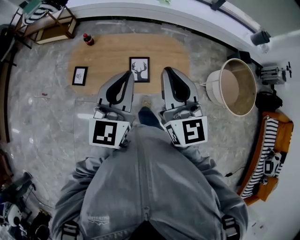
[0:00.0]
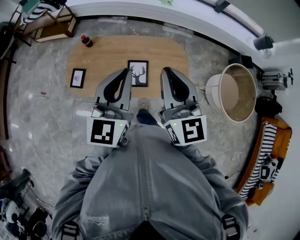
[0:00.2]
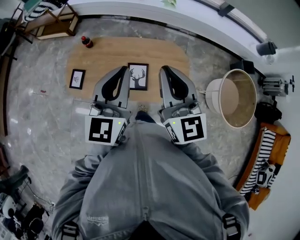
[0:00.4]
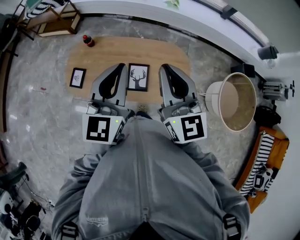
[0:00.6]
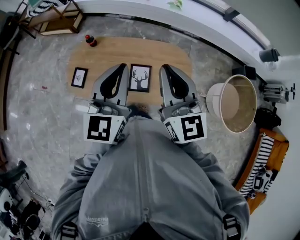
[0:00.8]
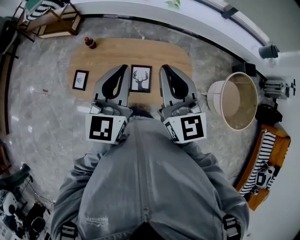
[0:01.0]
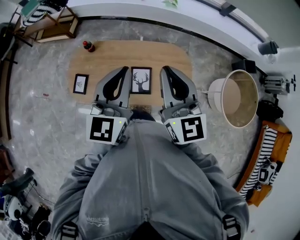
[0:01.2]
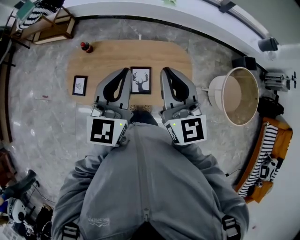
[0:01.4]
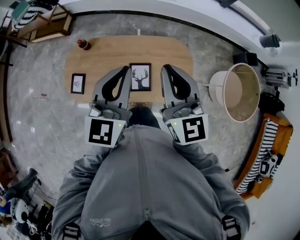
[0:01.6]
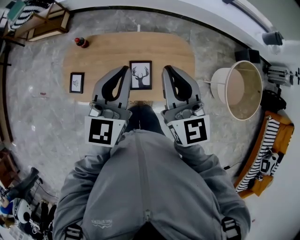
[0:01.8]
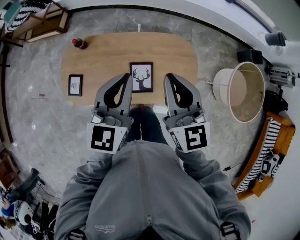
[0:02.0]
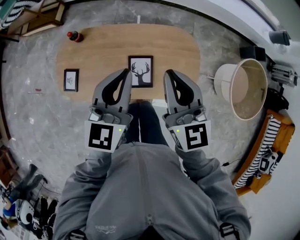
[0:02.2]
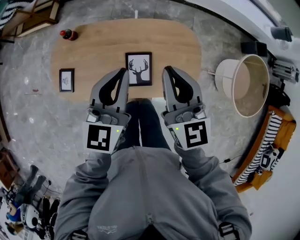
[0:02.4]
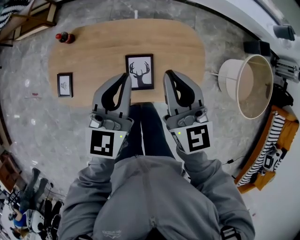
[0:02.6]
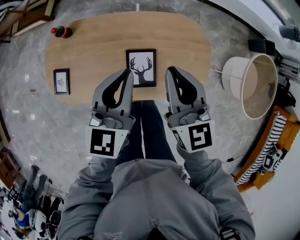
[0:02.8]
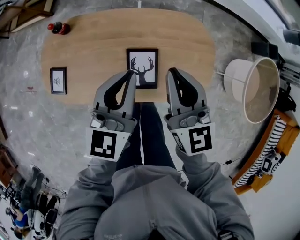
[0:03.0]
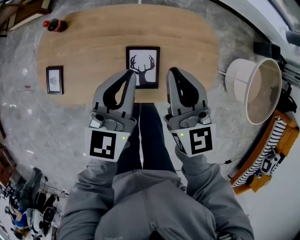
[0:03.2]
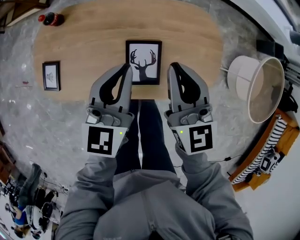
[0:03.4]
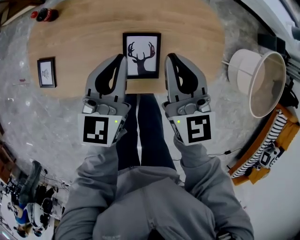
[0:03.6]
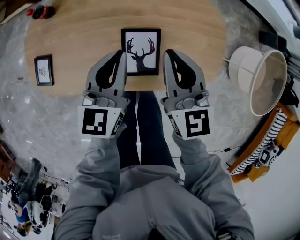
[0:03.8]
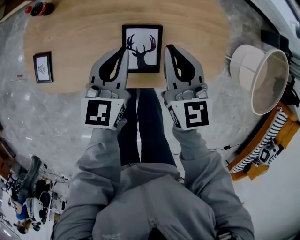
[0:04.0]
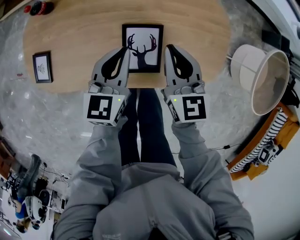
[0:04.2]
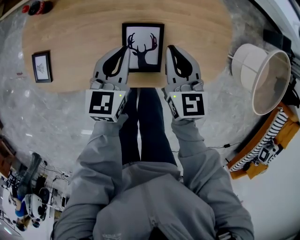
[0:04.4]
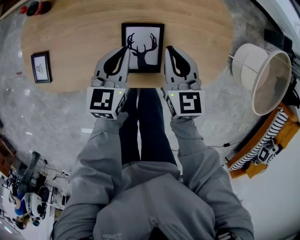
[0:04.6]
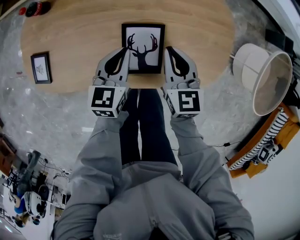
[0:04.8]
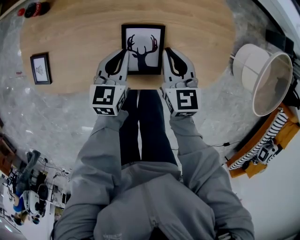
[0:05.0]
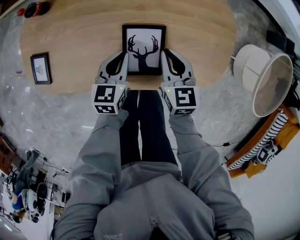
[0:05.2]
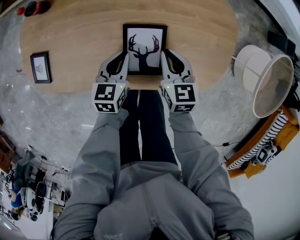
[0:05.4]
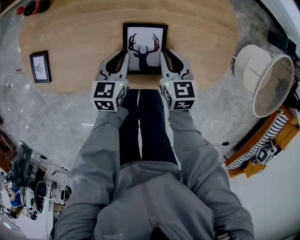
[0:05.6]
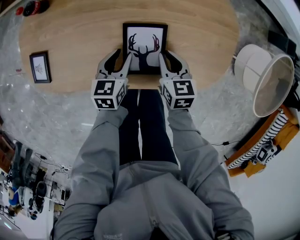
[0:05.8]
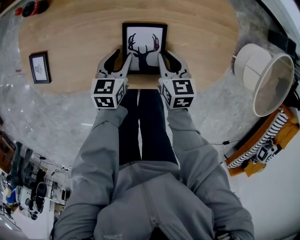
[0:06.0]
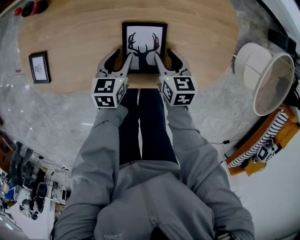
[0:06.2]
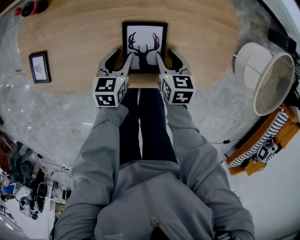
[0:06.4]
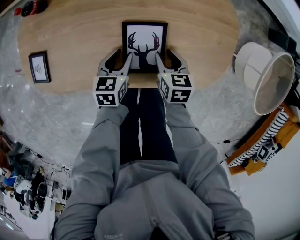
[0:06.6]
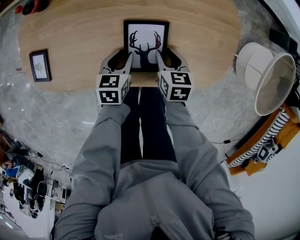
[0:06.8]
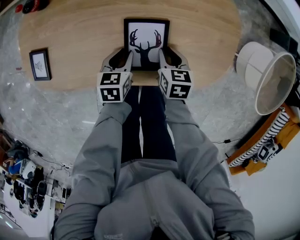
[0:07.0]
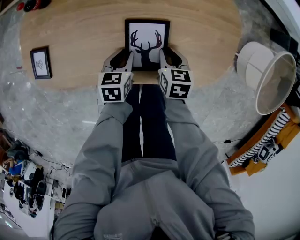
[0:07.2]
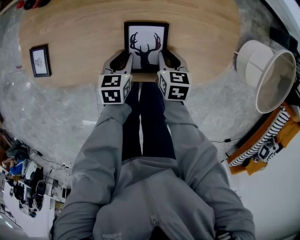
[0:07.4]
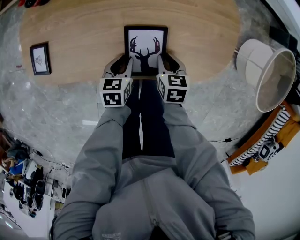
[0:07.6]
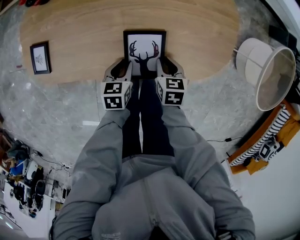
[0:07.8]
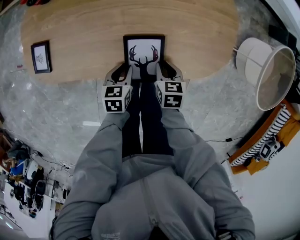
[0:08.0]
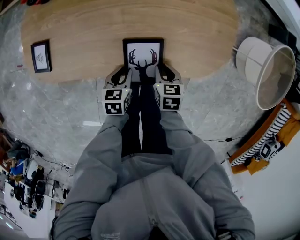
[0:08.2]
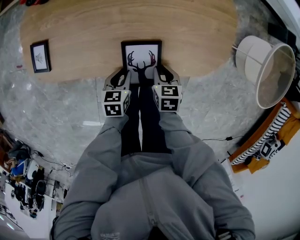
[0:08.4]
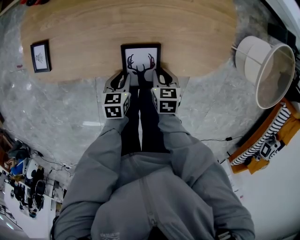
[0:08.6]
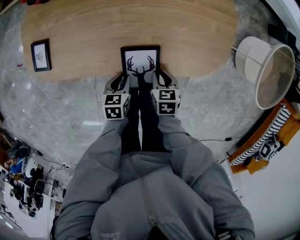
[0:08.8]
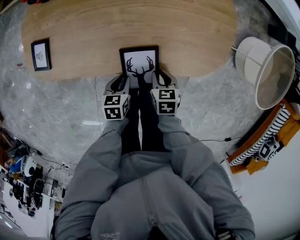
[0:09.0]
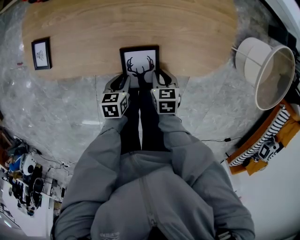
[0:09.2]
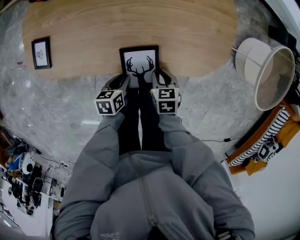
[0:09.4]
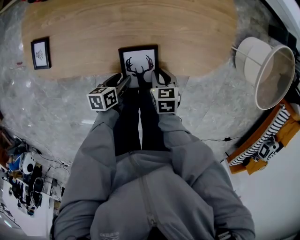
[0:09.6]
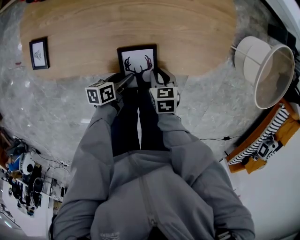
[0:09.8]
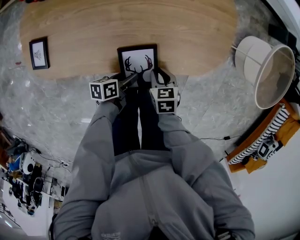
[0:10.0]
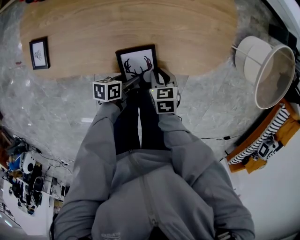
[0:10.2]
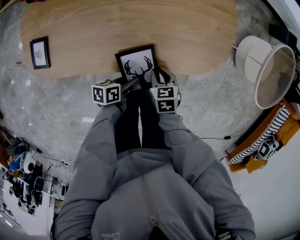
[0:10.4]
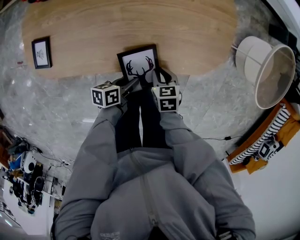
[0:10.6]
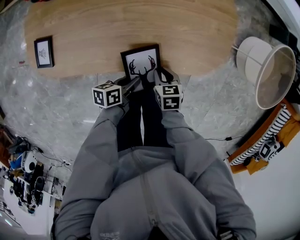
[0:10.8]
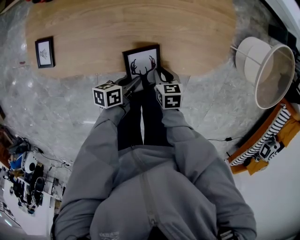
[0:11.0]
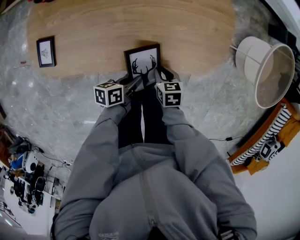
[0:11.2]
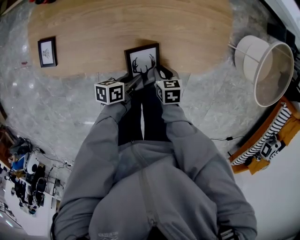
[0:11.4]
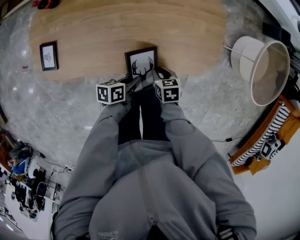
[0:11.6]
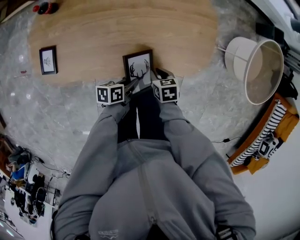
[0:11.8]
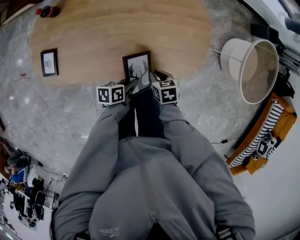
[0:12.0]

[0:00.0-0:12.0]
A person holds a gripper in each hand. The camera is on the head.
0:00.0 to 0:01.6: The two grippers go about 20 cm forward.
0:01.6 to 0:03.0: The grippers both shift downward by roughly 30 cm.
0:03.0 to 0:04.4: Both grippers travel together downward, about 20 cm.
0:04.4 to 0:06.0: Both grippers move downward, approximately 15 cm. The left gripper opens its fingers. The right gripper swivels about 20 degrees.
0:06.0 to 0:07.6: Both grippers move backward, about 5 cm.
0:07.6 to 0:09.0: The grippers both shift backward by roughly 10 cm.
0:09.0 to 0:10.4: The left gripper moves approximately 5 cm, and changes its angle by roughly 40 degrees.
0:10.4 to 0:12.0: The two grippers go roughly 10 cm upward. The left gripper closes its fingers.

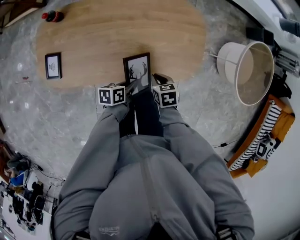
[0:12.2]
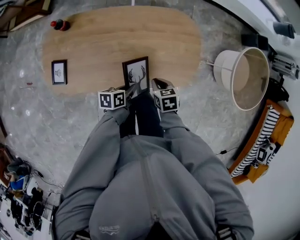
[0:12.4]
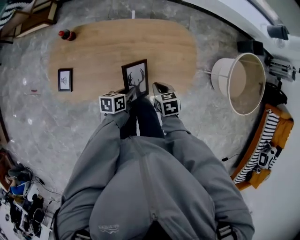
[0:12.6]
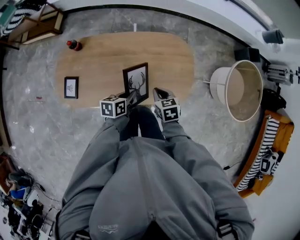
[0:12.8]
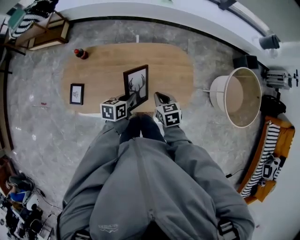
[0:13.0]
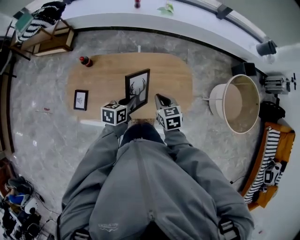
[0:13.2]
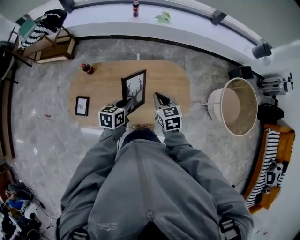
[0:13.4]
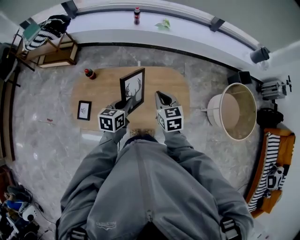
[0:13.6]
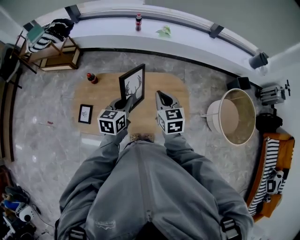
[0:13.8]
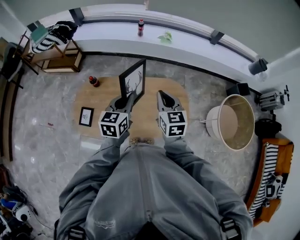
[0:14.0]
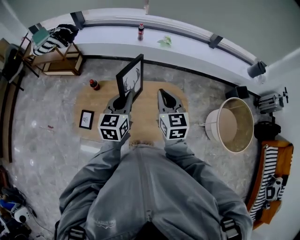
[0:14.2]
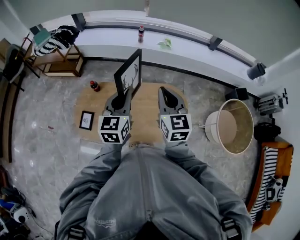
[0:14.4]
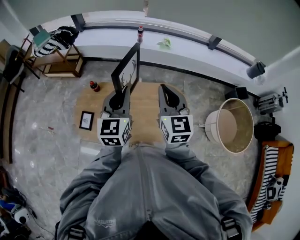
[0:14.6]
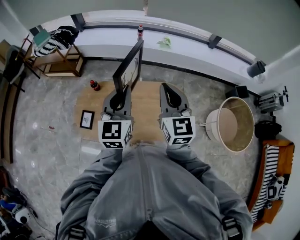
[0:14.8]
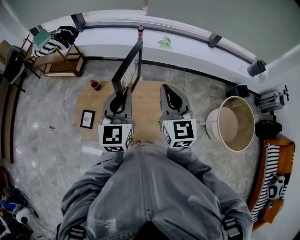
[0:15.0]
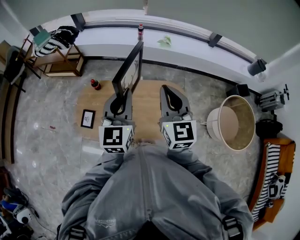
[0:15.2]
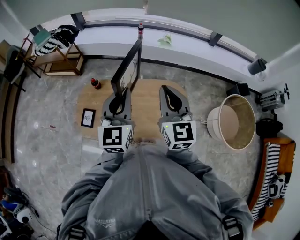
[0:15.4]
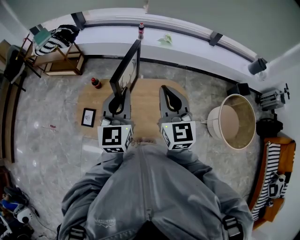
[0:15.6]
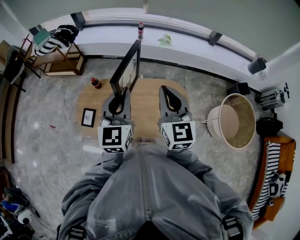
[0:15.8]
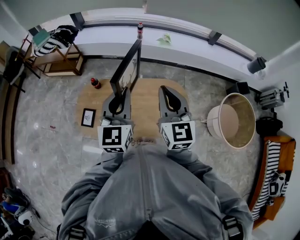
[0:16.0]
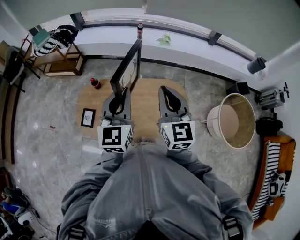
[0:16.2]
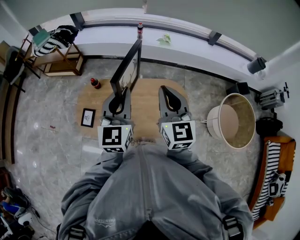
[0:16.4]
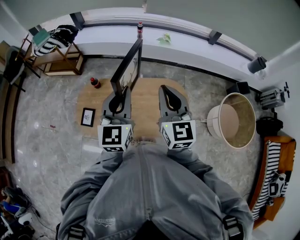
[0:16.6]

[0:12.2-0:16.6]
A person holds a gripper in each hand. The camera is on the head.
0:12.2 to 0:13.6: The grippers both shift upward by about 40 cm. The left gripper swivels approximately 40 degrees, while the right gripper tips its fingers upward by some 30 degrees.
0:13.6 to 0:15.2: Both grippers move upward, approximately 25 cm. The right gripper rotates some 30 degrees. The left gripper points its fingers about 30 degrees further upward.
0:15.2 to 0:16.6: The grippers make only small movements.

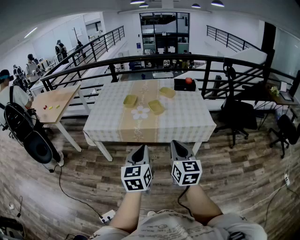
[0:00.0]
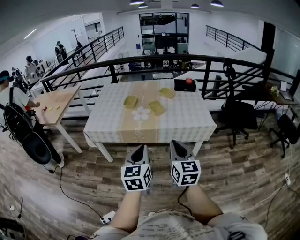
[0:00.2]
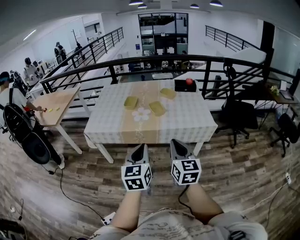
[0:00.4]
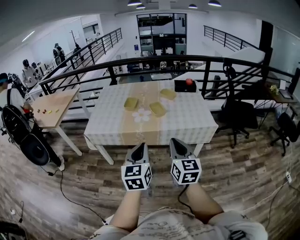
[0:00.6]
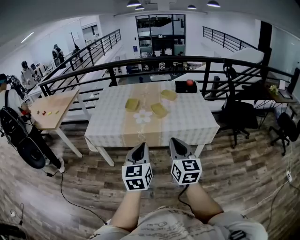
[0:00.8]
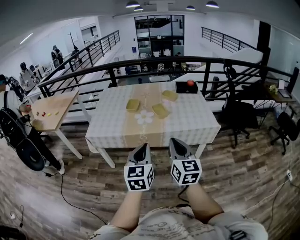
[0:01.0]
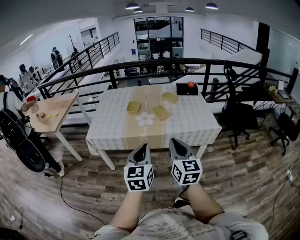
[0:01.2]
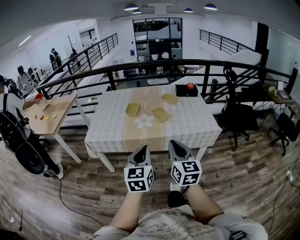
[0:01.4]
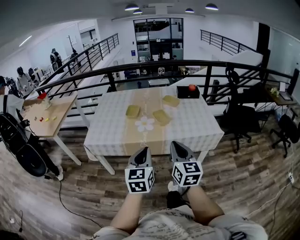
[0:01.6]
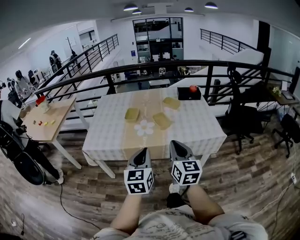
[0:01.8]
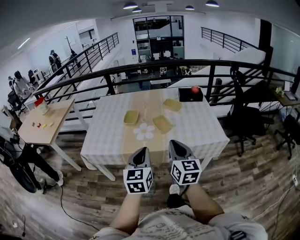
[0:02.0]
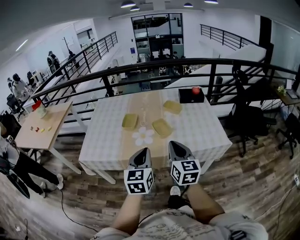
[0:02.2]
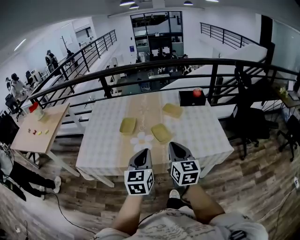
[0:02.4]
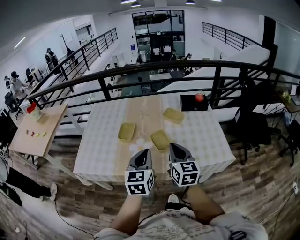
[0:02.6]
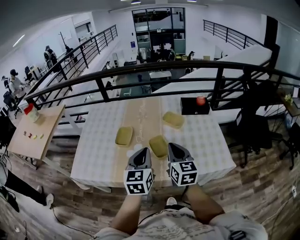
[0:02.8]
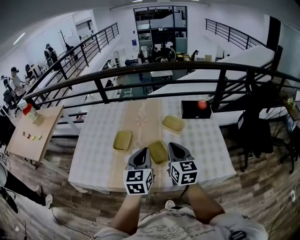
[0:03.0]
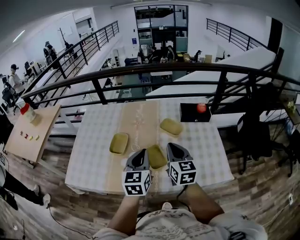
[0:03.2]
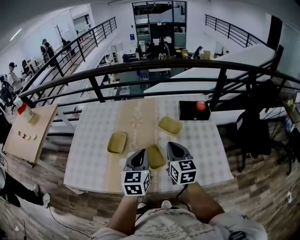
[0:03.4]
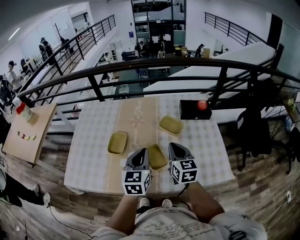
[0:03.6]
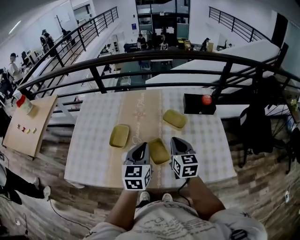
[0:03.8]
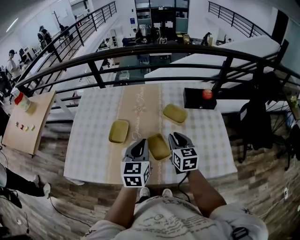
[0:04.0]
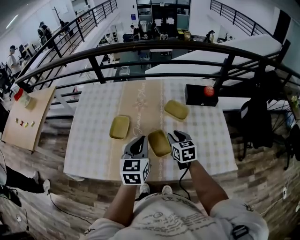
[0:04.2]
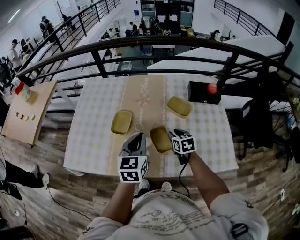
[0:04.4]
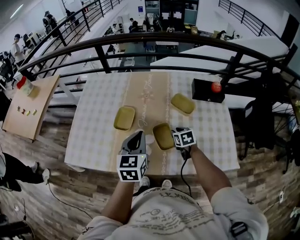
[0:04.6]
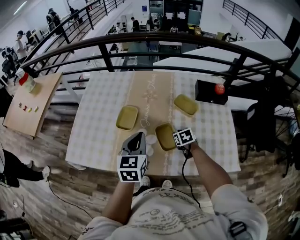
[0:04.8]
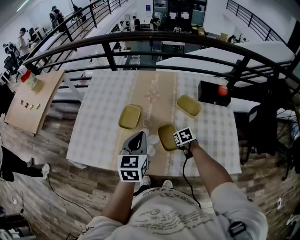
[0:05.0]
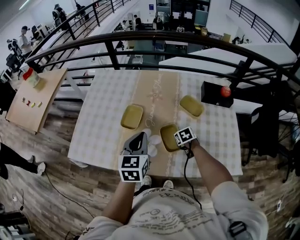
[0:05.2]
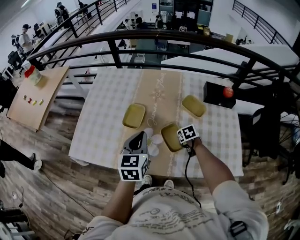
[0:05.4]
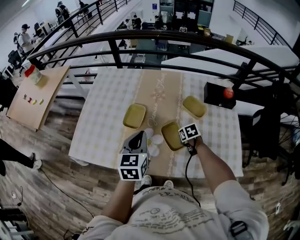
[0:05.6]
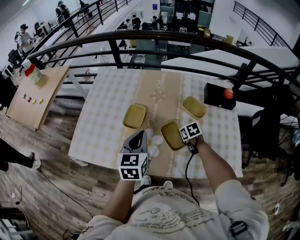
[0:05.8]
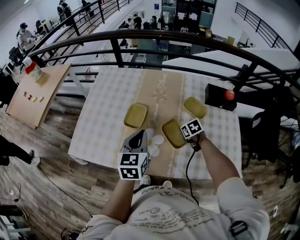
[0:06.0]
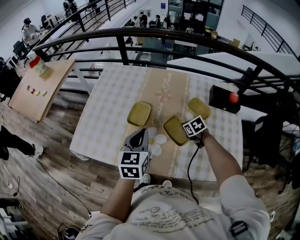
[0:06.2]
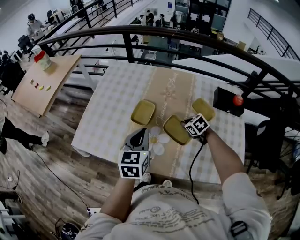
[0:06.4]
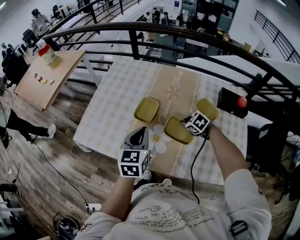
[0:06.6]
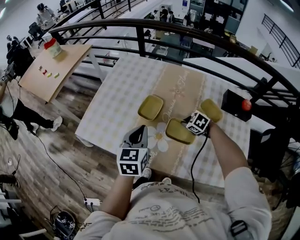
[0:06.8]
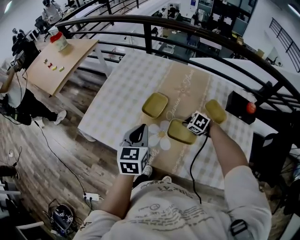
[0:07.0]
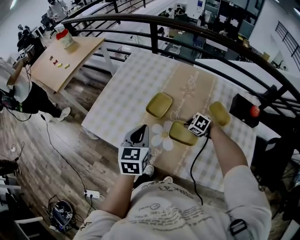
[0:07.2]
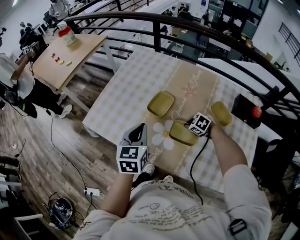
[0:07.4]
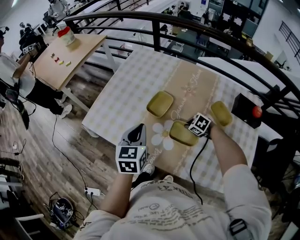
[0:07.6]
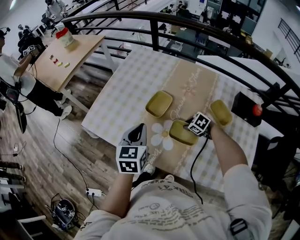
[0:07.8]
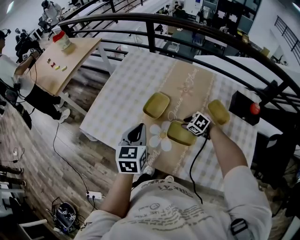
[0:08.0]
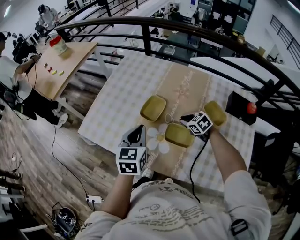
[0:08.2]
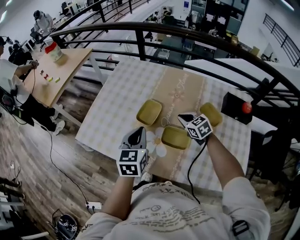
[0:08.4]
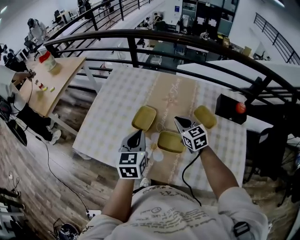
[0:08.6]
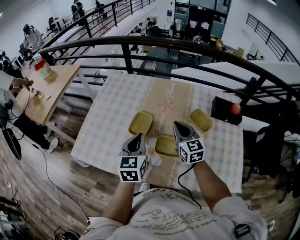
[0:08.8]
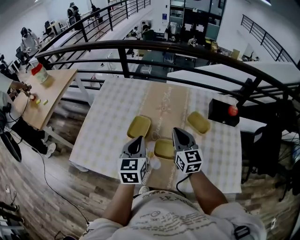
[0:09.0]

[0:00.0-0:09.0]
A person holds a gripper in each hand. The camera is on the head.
0:00.0 to 0:01.6: The grippers both shift forward and to the left by about 10 cm.
0:01.6 to 0:03.0: The two grippers travel together, forward, approximately 40 cm.
0:03.0 to 0:04.4: The left gripper shifts some 5 cm forward. The right gripper shifts approximately 20 cm downward and forward, tilts its fingers roughly 30 degrees downward, and opens up.
0:04.4 to 0:06.0: The right gripper heads downward and forward, covering about 10 cm, swivels roughly 30 degrees, and closes. The left gripper heads to the left, covering some 5 cm.
0:06.0 to 0:07.6: The right gripper ends up approximately 10 cm from where it was, and rolls counterclockwise, seen from behind, by roughly 40 degrees. Meanwhile the left gripper ends up about 10 cm from where it was.
0:07.6 to 0:09.0: The right gripper shifts approximately 25 cm upward, points its fingers some 60 degrees further upward, and opens and closes again. Meanwhile the left gripper moves approximately 10 cm.
